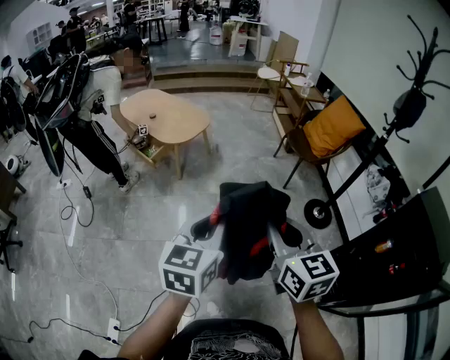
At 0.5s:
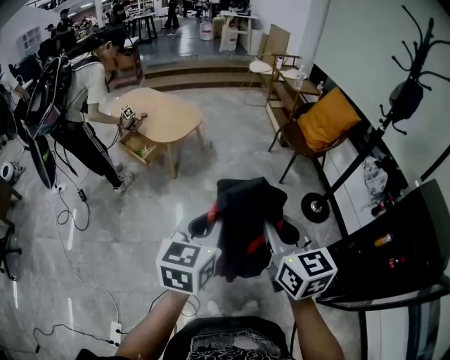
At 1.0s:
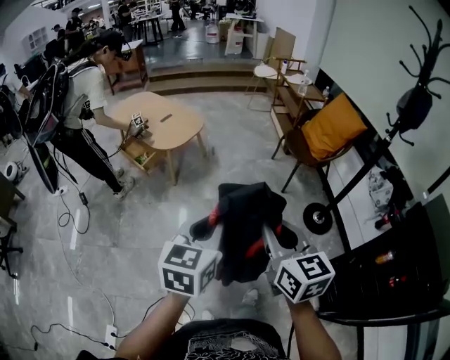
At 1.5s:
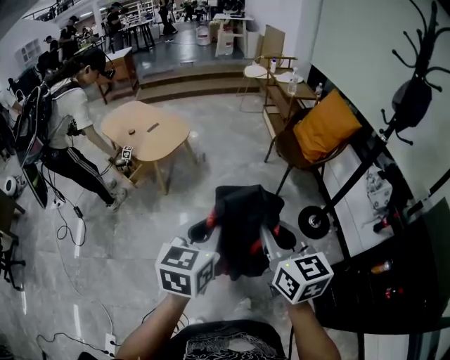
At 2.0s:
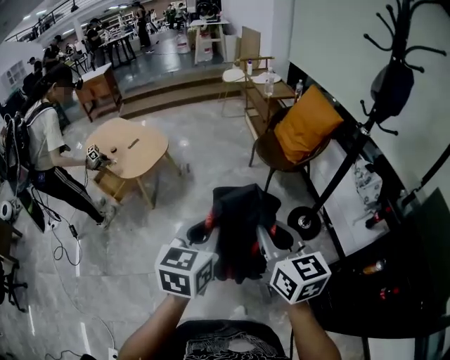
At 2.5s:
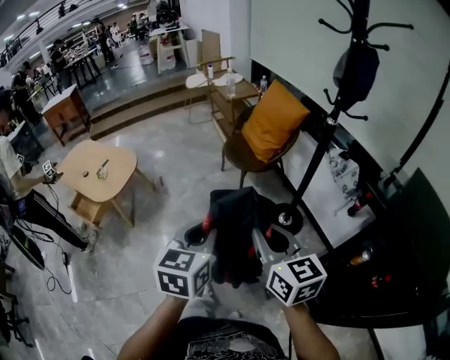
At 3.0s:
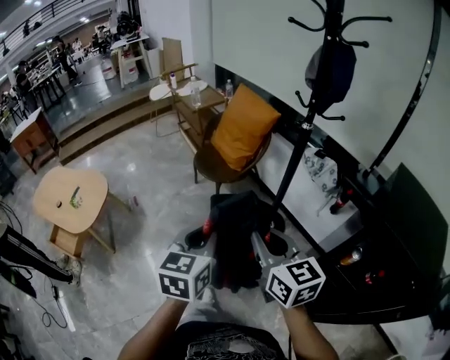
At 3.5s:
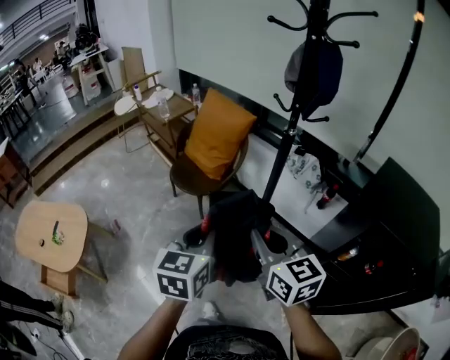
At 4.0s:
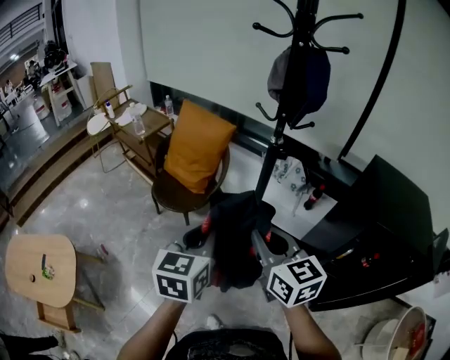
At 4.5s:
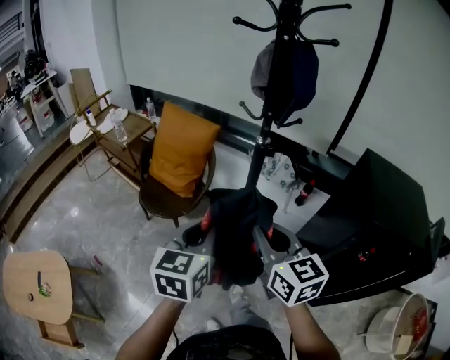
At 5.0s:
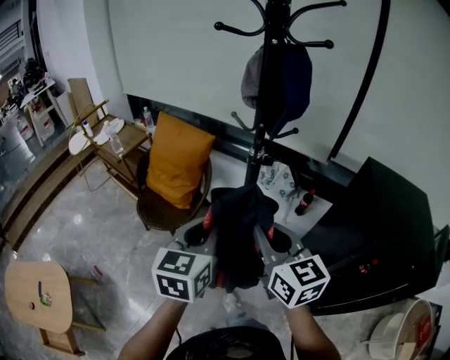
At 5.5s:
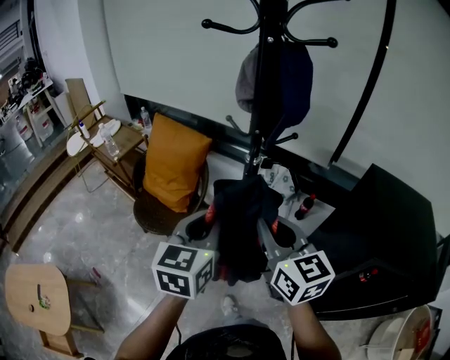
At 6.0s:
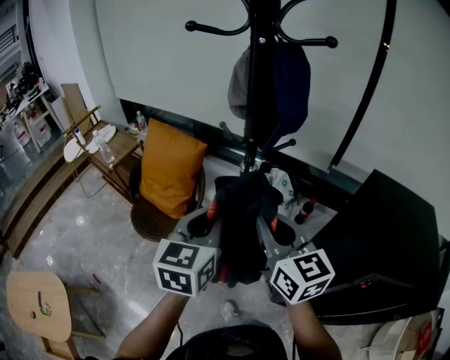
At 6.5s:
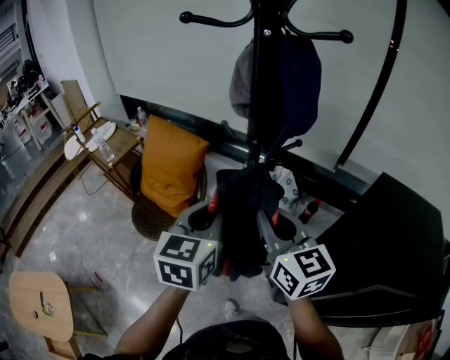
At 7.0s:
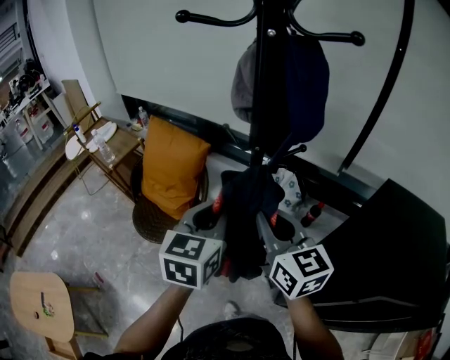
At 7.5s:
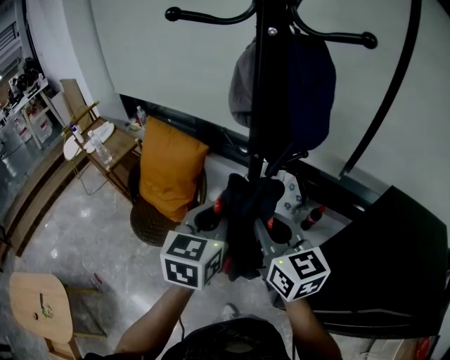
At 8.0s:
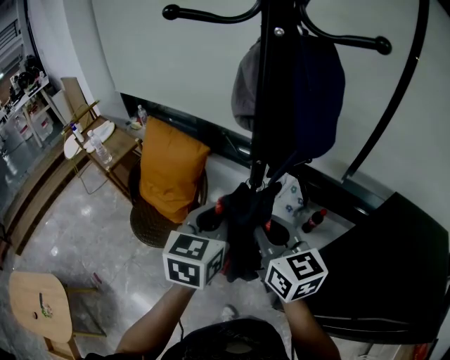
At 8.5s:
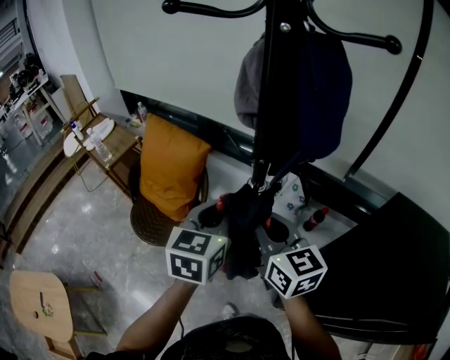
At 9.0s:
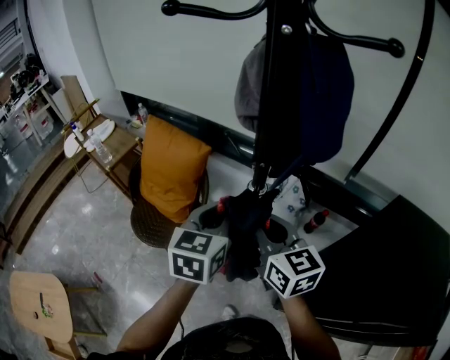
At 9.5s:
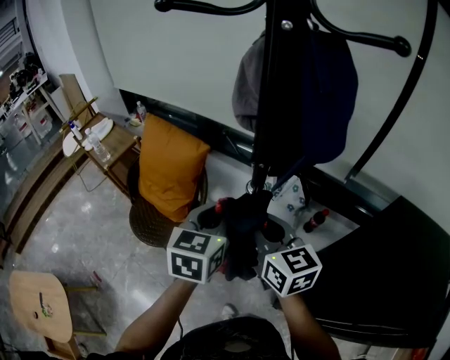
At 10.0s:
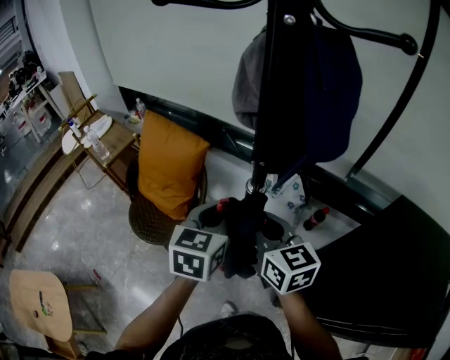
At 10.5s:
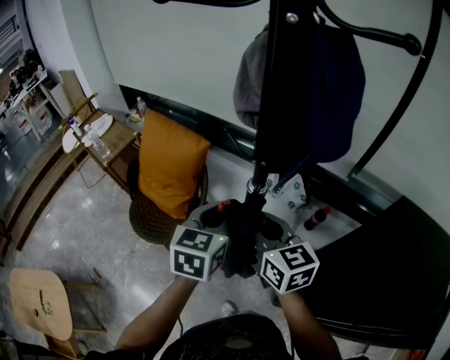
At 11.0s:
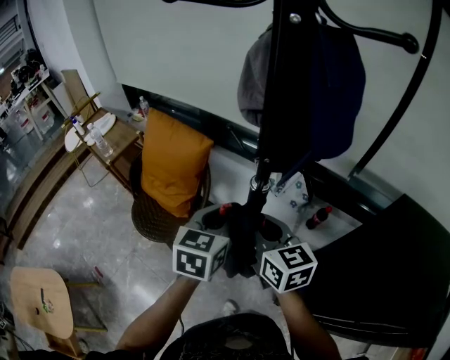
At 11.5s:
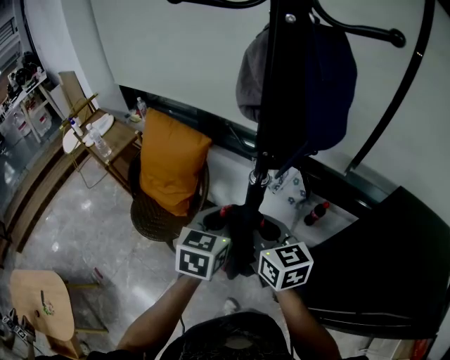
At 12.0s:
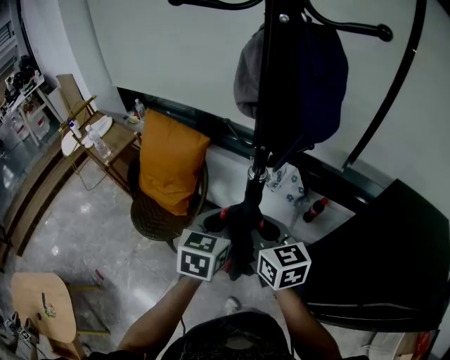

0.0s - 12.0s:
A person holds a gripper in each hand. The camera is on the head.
0.0s - 2.0s: The two grippers go roughly 30 cm to the right and forward.
2.0s - 4.0s: The right gripper changes place by some 25 cm, and changes its angle by some 40 degrees, while the left gripper ends up some 35 cm from where it was, and rotates approximately 40 degrees.
4.0s - 6.0s: Both grippers move forward and to the right, some 20 cm.
6.0s - 8.0s: The two grippers go approximately 10 cm forward.
8.0s - 10.0s: The left gripper shifts by approximately 5 cm; the right gripper changes place by about 5 cm.
10.0s - 12.0s: The left gripper shifts by approximately 5 cm.

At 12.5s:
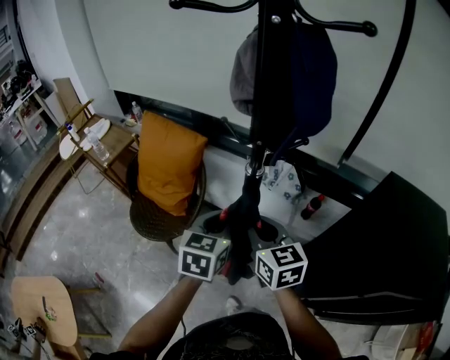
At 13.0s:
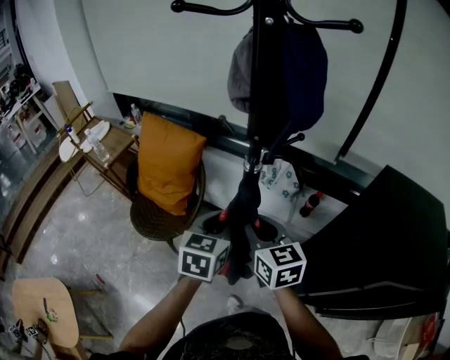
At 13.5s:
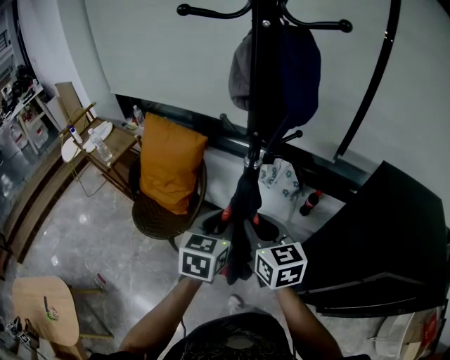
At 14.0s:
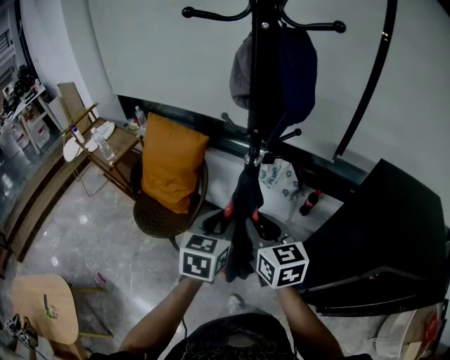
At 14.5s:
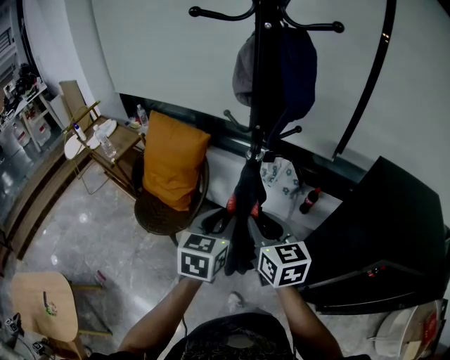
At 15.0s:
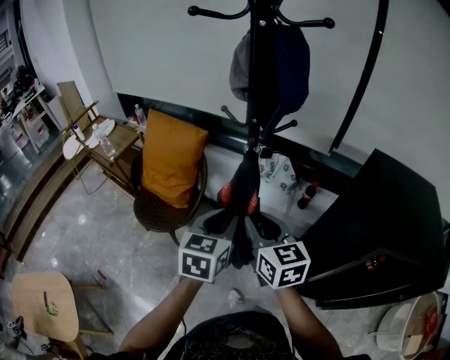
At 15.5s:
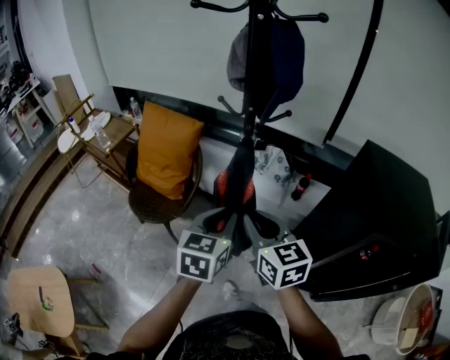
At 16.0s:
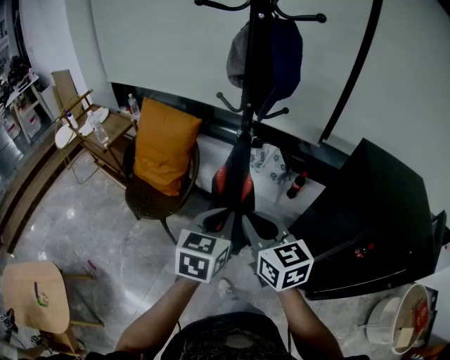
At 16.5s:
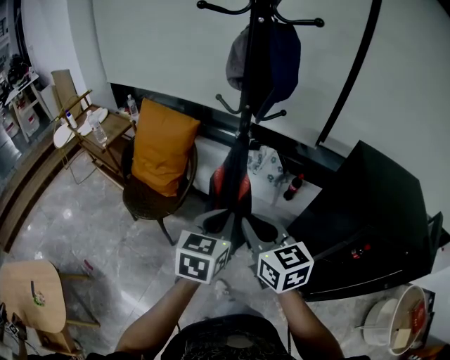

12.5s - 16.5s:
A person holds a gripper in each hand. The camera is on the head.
12.5s - 14.5s: Both grippers travel together backward, roughly 5 cm.
14.5s - 16.5s: The two grippers go about 10 cm backward.

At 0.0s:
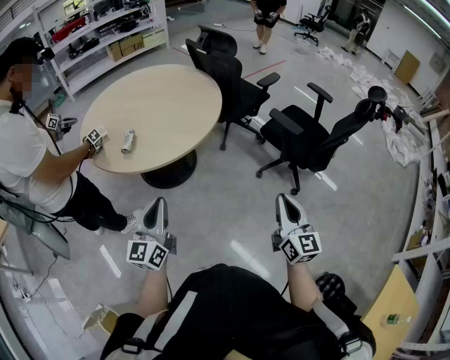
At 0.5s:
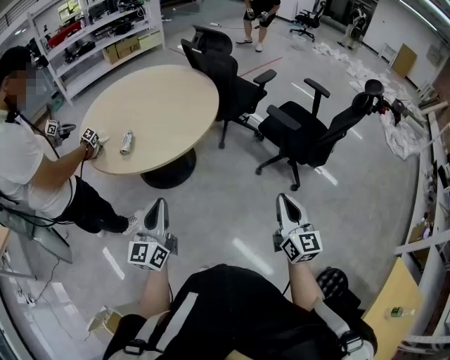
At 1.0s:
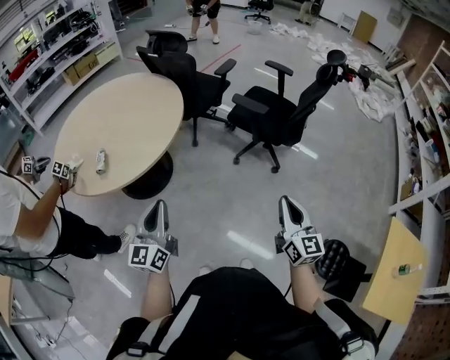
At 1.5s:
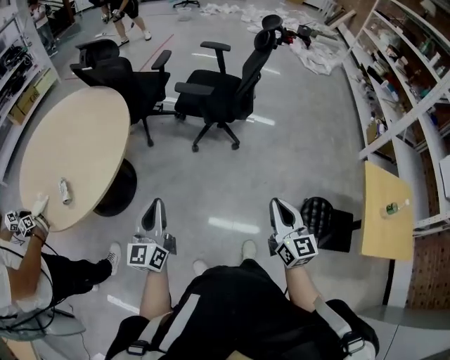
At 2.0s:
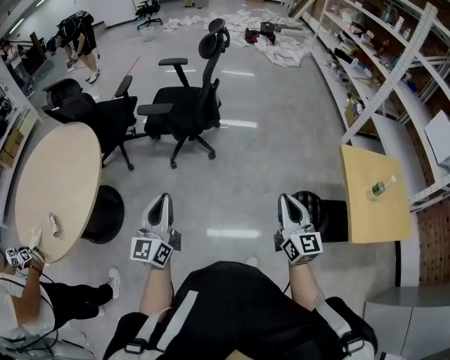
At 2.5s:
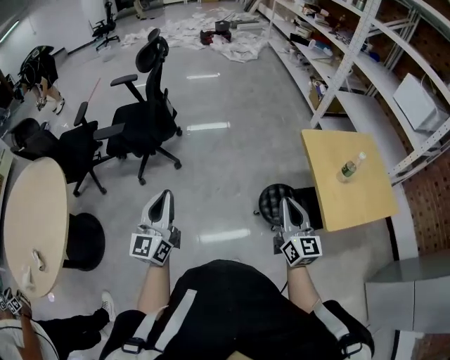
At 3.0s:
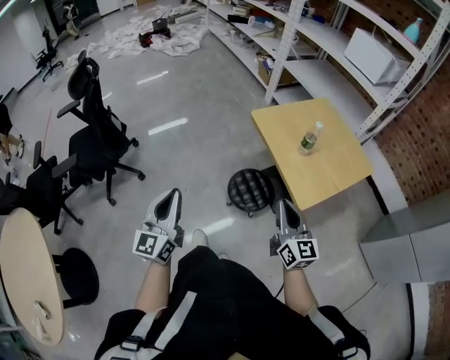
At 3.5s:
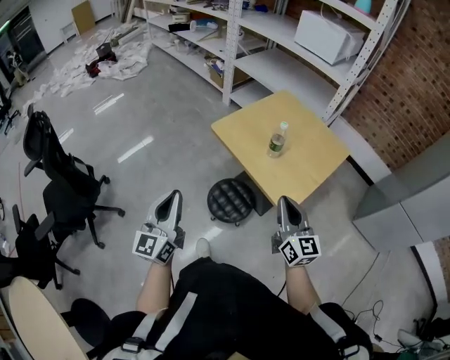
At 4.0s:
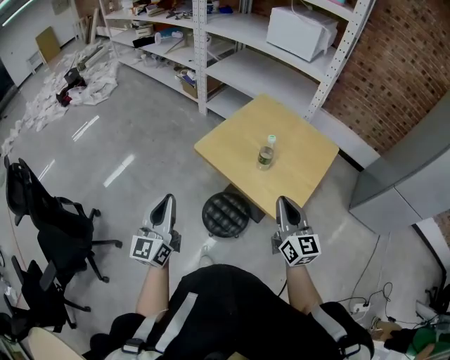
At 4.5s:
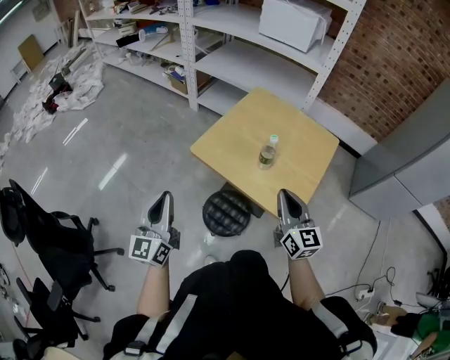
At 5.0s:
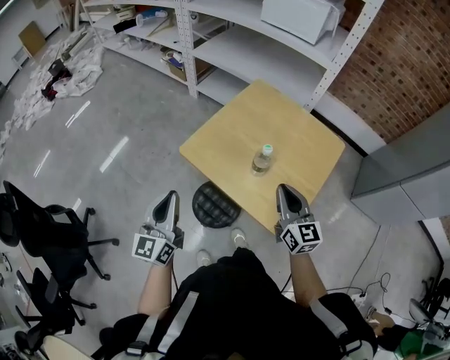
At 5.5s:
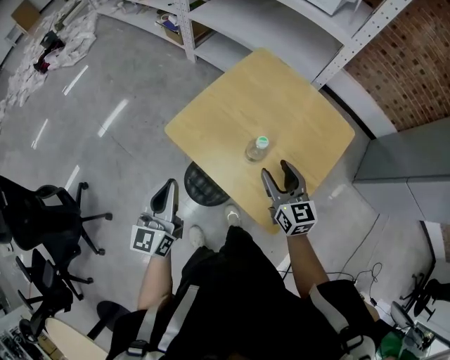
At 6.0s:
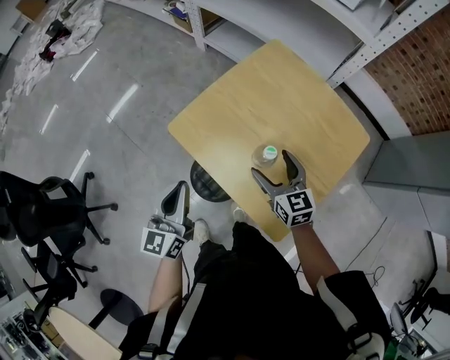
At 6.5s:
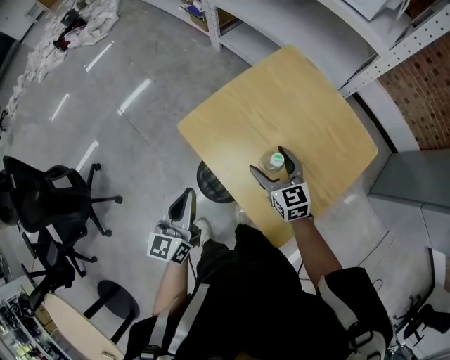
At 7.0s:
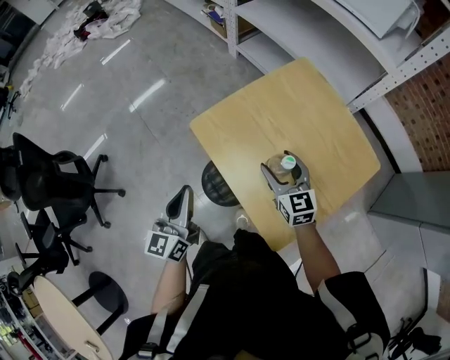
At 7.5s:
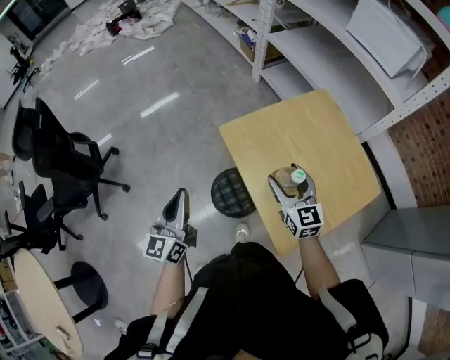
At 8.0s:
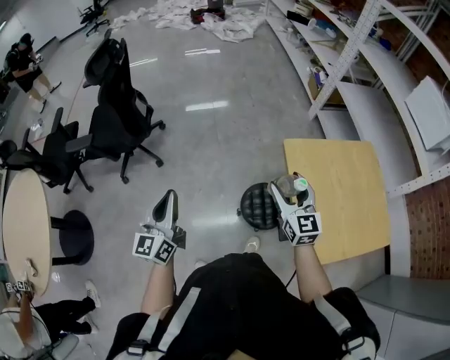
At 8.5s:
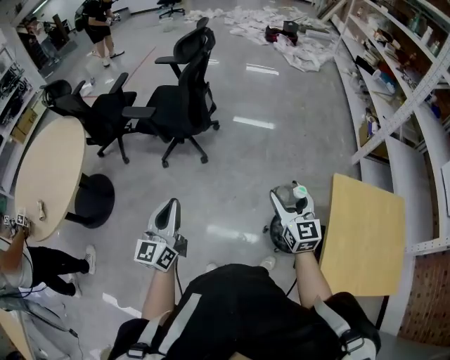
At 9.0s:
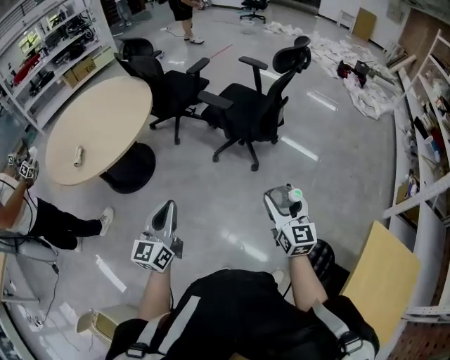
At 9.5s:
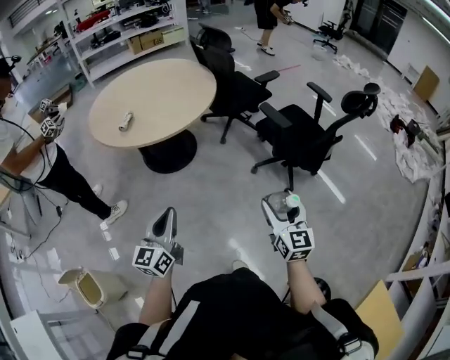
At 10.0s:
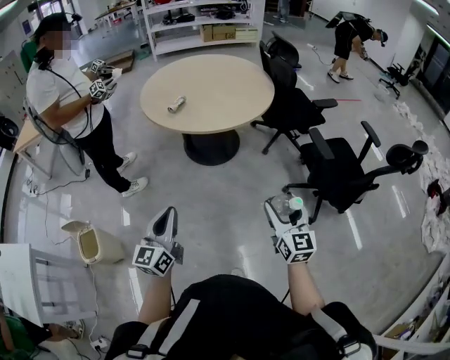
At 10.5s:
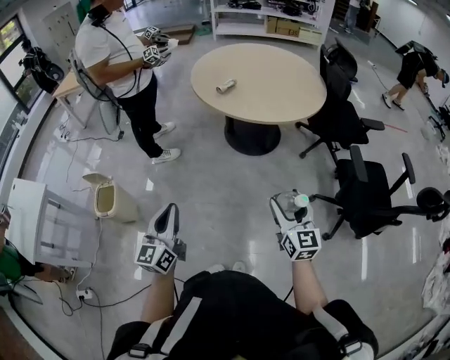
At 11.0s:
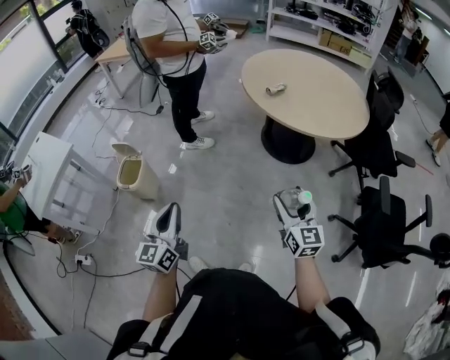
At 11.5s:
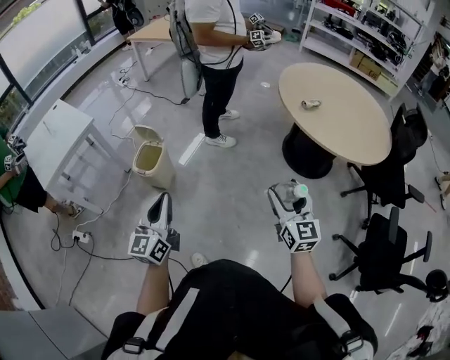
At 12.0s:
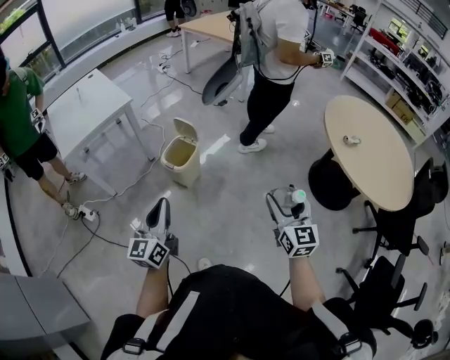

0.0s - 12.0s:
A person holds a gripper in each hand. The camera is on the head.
0.0s - 2.0s: The left gripper shifts by approximately 30 cm, and rotates about 40 degrees, while the right gripper changes place by some 35 cm, and turns by some 40 degrees.
2.0s - 4.0s: The two grippers travel together, some 50 cm. The right gripper turns by roughly 50 degrees, while the left gripper swivels approximately 60 degrees.
4.0s - 6.0s: The right gripper heads forward and downward, covering approximately 30 cm, changes its angle by about 30 degrees, and opens its fingers, while the left gripper shifts roughly 25 cm forward, to the right and downward.
6.0s - 8.0s: The left gripper ends up approximately 40 cm from where it was, and rotates approximately 50 degrees; the right gripper changes place by approximately 30 cm, and swivels approximately 40 degrees.
8.0s - 10.0s: The pair of grippers is taken roughly 60 cm. The right gripper swivels about 80 degrees. Meanwhile the left gripper rotates roughly 80 degrees.
10.0s - 12.0s: The left gripper moves approximately 50 cm, and turns by roughly 60 degrees. Meanwhile the right gripper ends up some 50 cm from where it was, and swivels roughly 50 degrees.
